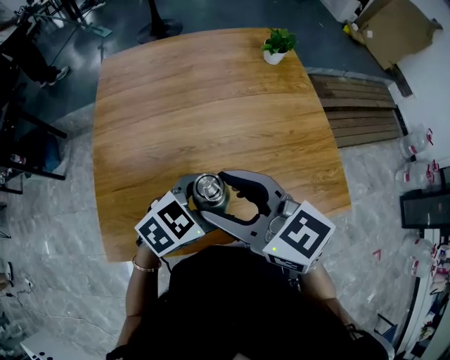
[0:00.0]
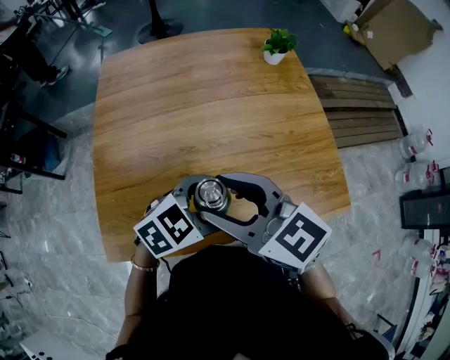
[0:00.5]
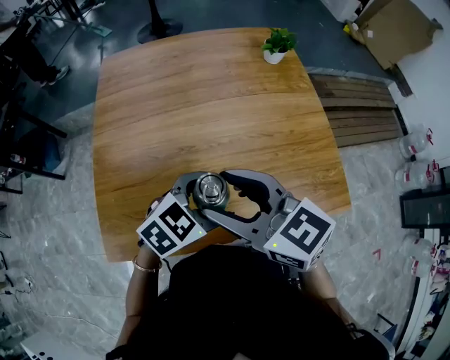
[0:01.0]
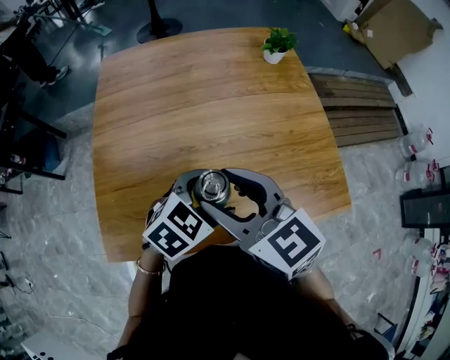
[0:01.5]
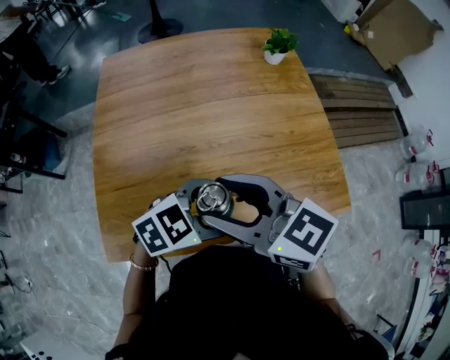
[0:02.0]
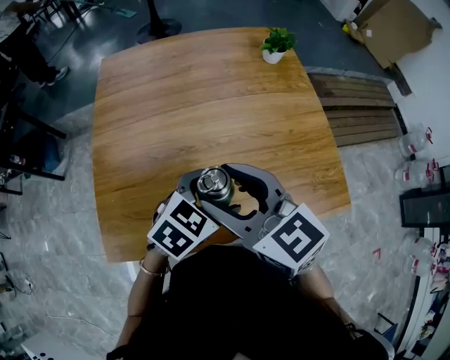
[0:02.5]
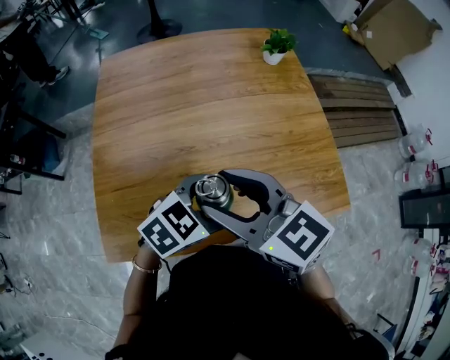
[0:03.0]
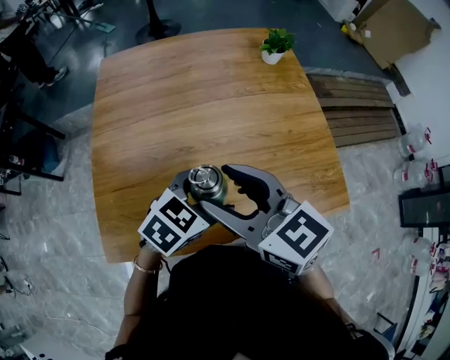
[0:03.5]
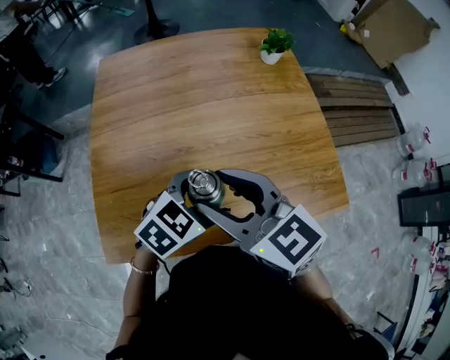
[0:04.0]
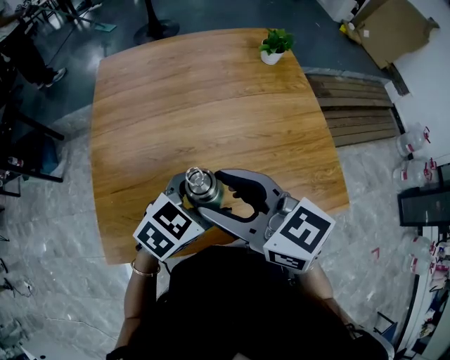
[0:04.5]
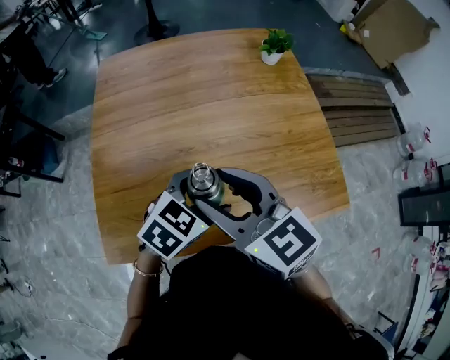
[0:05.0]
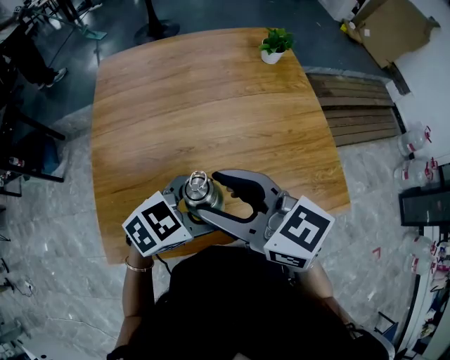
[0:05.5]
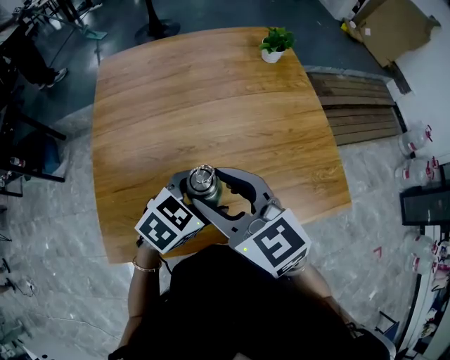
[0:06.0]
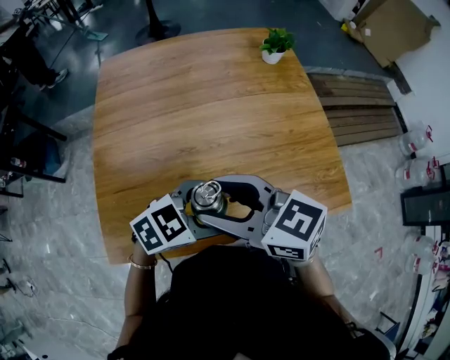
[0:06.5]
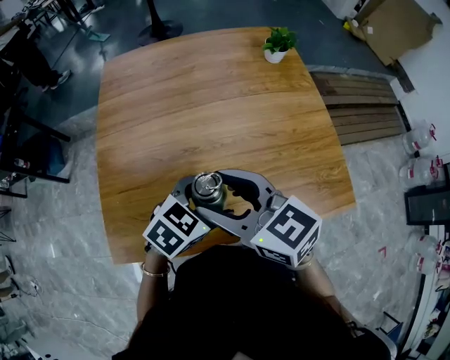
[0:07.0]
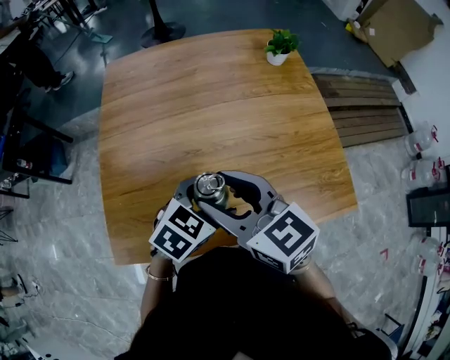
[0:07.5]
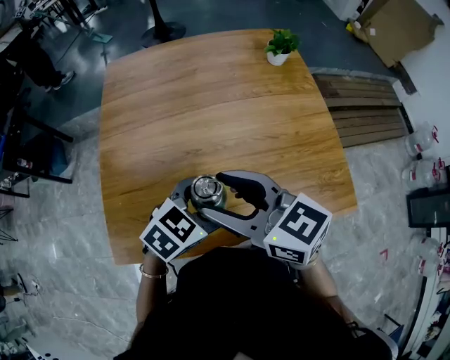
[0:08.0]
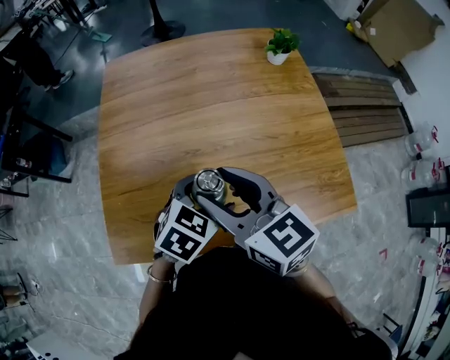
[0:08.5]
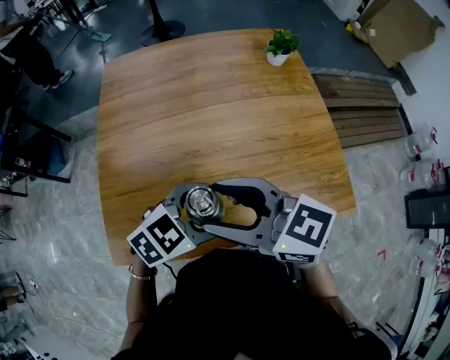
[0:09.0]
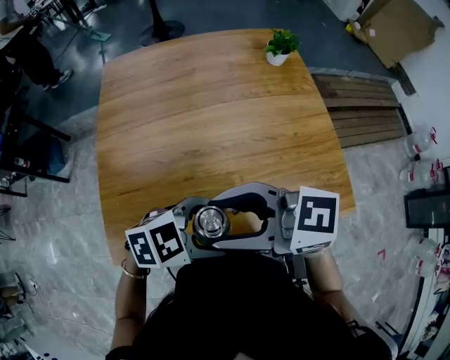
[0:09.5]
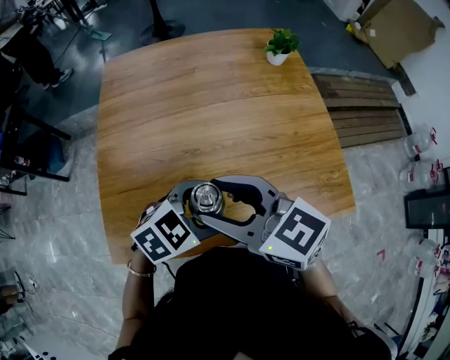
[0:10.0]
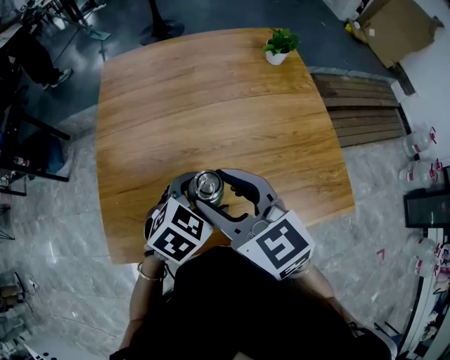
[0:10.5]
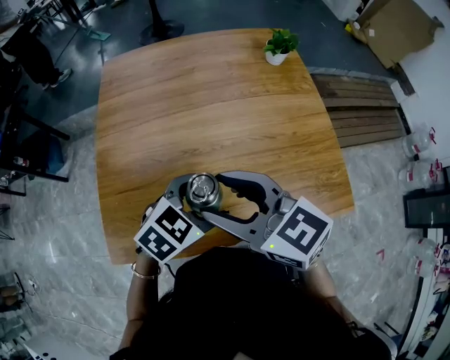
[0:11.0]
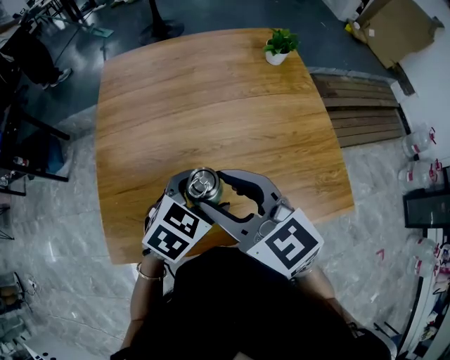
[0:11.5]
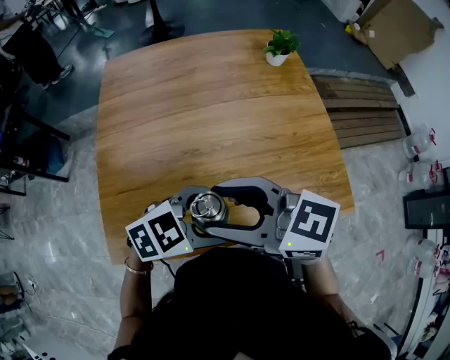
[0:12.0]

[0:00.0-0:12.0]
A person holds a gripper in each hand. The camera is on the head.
0:00.0 to 0:02.0: There are only small adjustments of the grippers.
0:04.0 to 0:06.0: The grippers stay close to where they were, moving slightly.

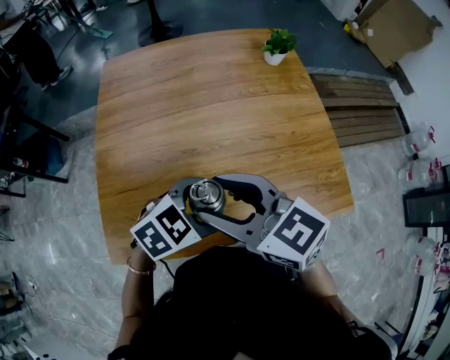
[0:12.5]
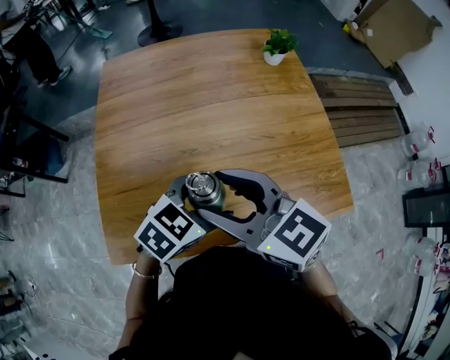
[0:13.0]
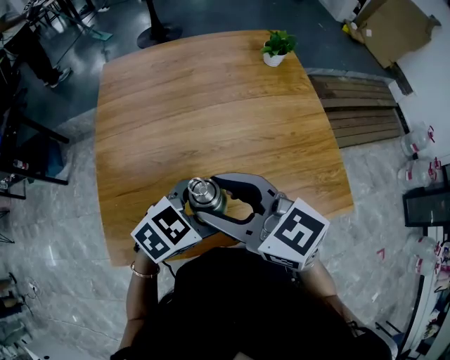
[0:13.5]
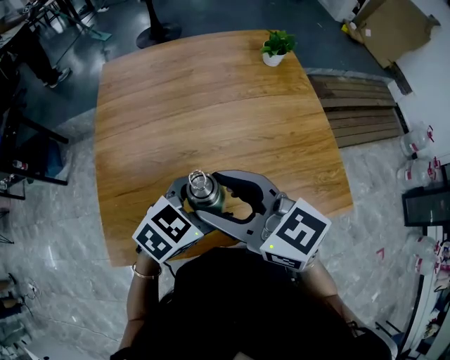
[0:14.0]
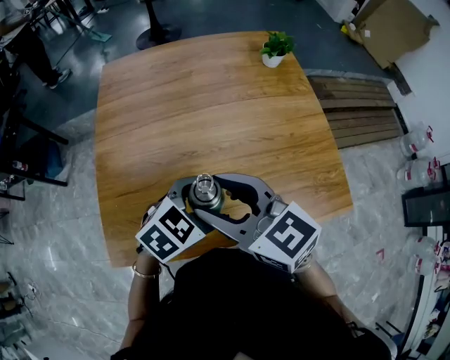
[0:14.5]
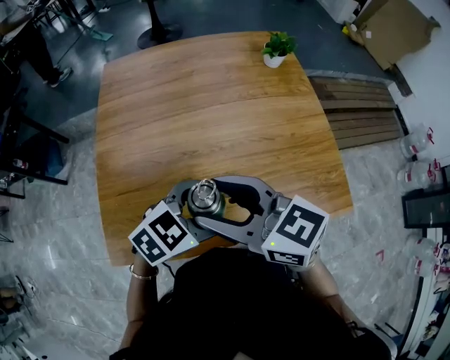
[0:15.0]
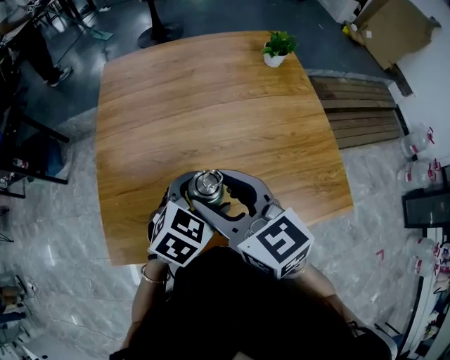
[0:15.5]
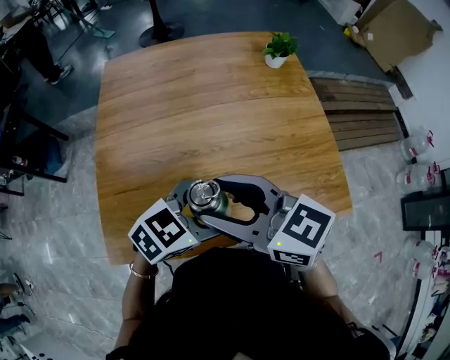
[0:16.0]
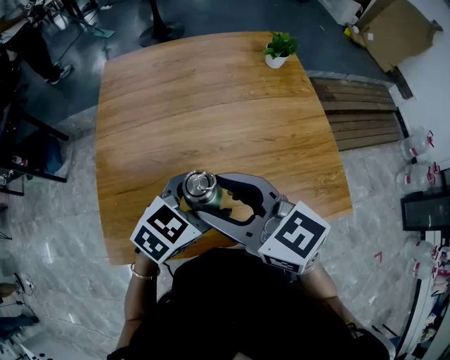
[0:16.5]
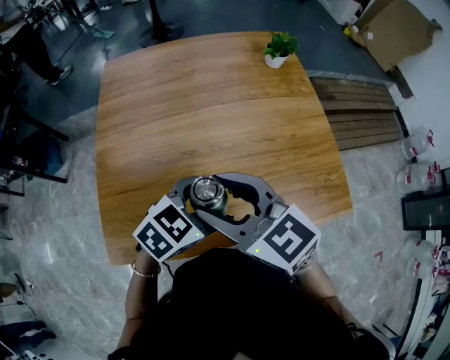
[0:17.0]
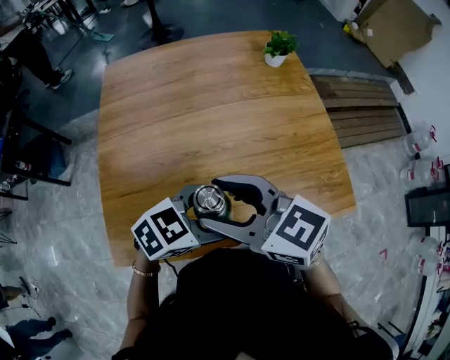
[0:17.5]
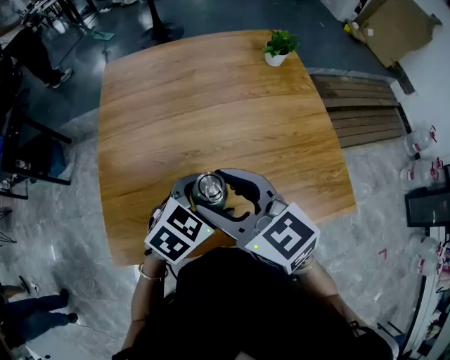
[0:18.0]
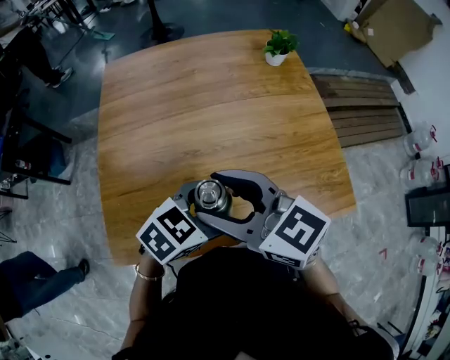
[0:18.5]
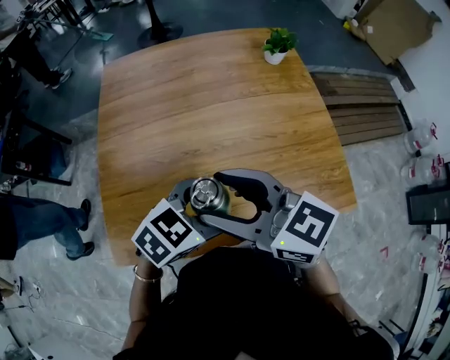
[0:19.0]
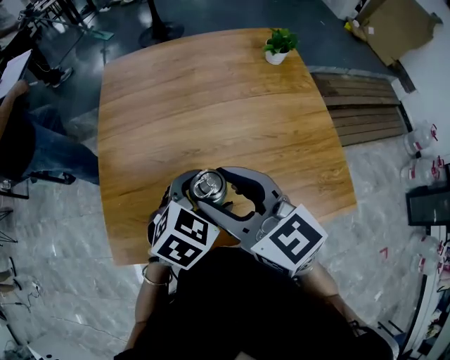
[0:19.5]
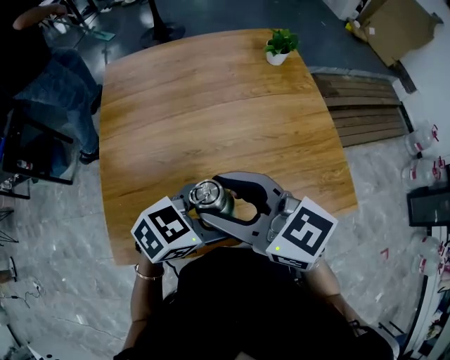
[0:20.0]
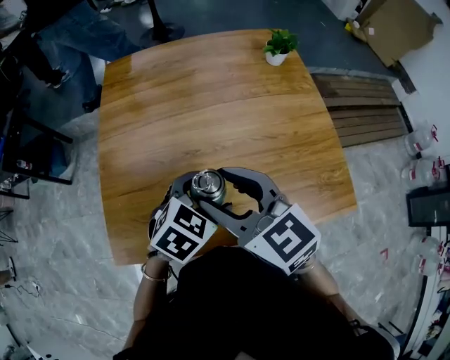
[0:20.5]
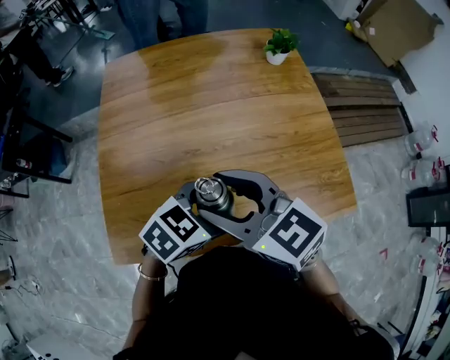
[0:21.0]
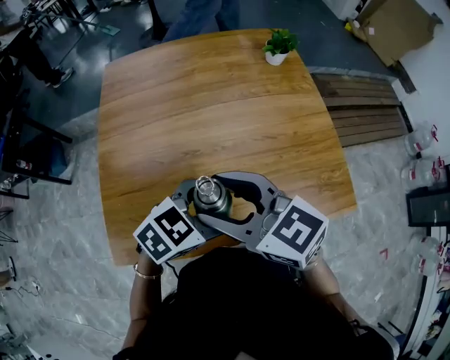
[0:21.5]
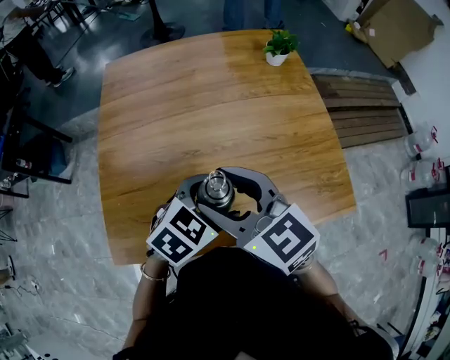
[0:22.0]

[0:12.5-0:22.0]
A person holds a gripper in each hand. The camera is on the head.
0:12.5 to 0:14.5: There are only small adjustments of the grippers.
0:14.5 to 0:16.5: There are only small adjustments of the grippers.
0:18.0 to 0:20.0: The left gripper shifts by roughly 5 cm, and rotates roughly 20 degrees.

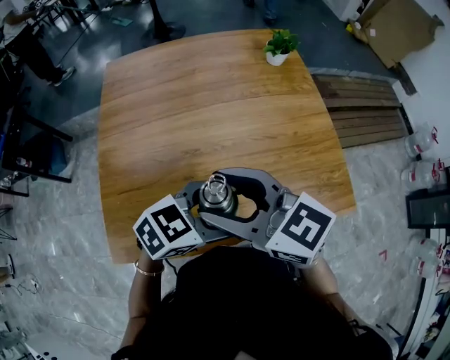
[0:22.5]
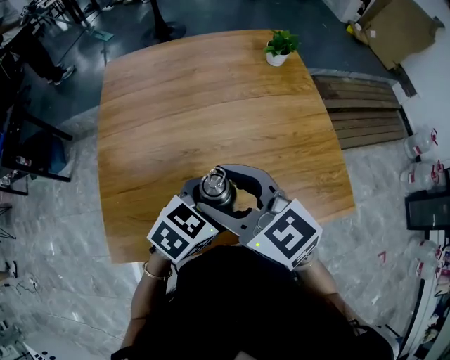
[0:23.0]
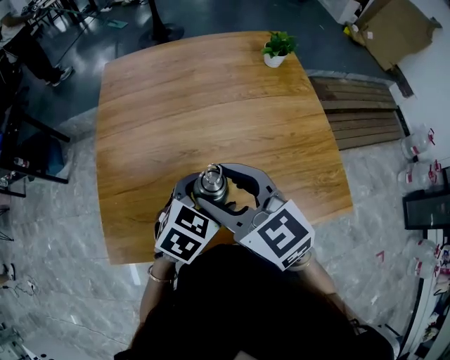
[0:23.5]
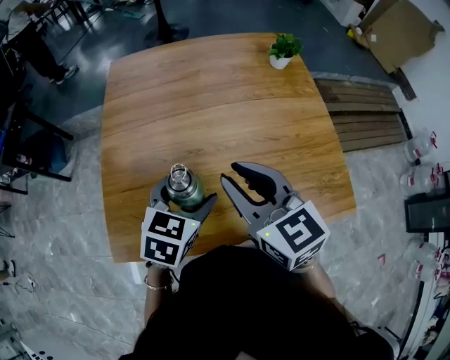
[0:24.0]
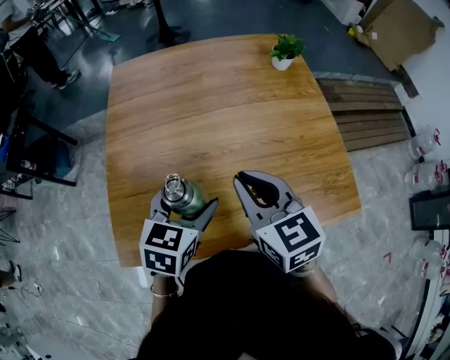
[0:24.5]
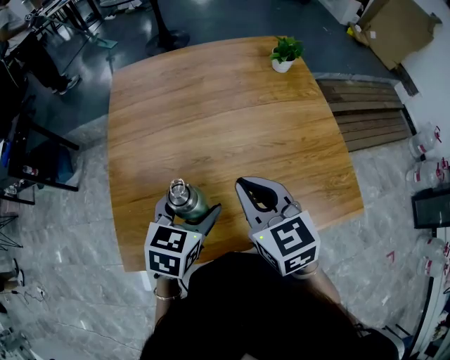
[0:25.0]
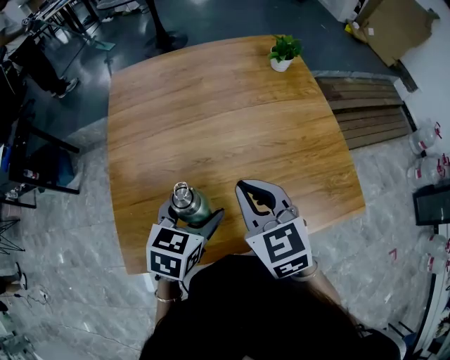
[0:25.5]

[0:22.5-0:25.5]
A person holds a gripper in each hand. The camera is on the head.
0:22.5 to 0:24.0: The left gripper ends up about 10 cm from where it was, and swivels roughly 40 degrees; the right gripper rotates about 20 degrees, and closes its fingers.
0:24.0 to 0:25.5: The right gripper closes up.

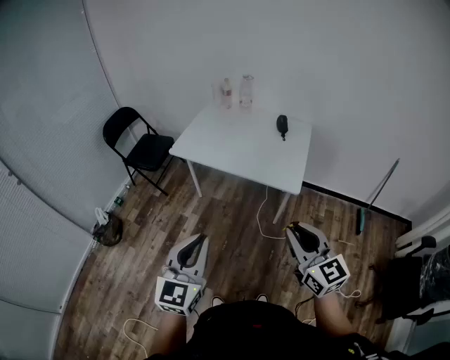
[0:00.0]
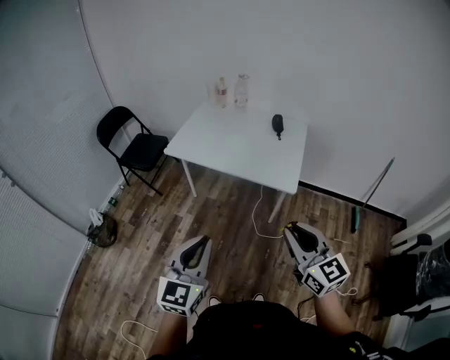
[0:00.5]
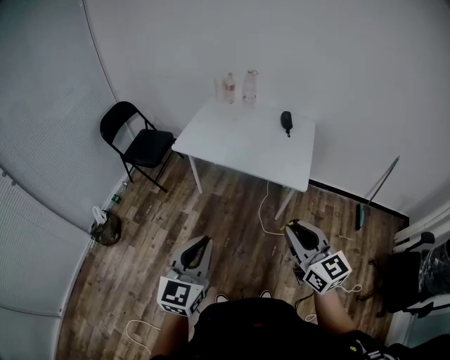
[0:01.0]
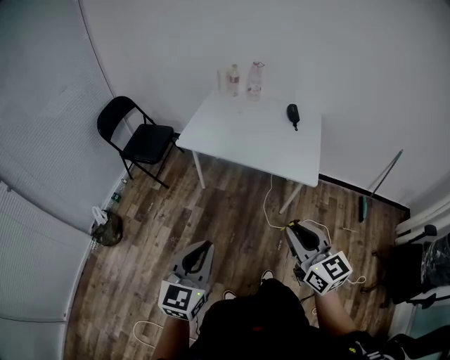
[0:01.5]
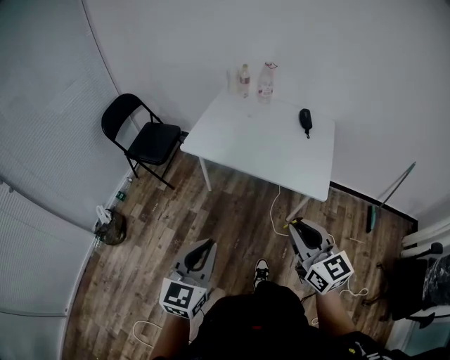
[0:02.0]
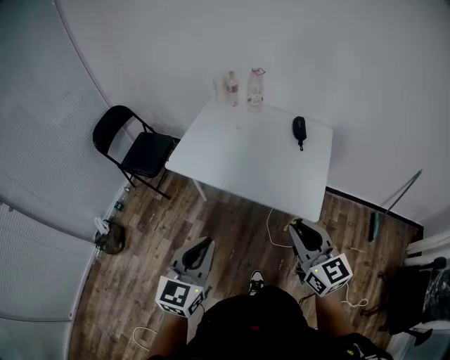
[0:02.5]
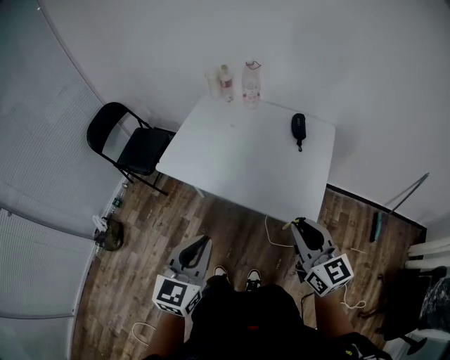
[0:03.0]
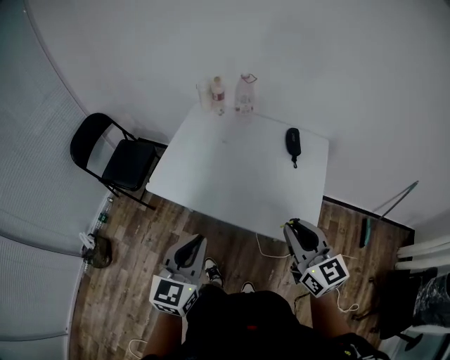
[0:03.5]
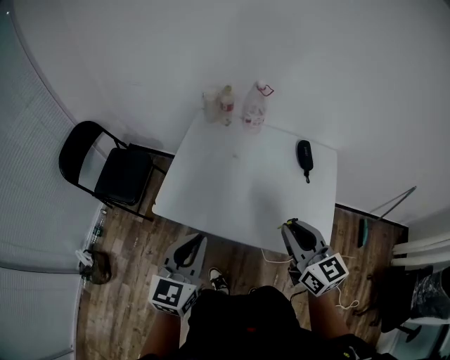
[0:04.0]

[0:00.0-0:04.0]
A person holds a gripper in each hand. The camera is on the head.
0:00.0 to 0:02.0: The right gripper goes approximately 20 cm forward and to the left; the left gripper travels forward, to the left and downward by some 15 cm.
0:02.0 to 0:04.0: The grippers both shift forward by some 40 cm.
